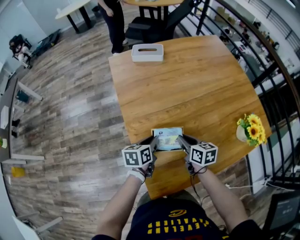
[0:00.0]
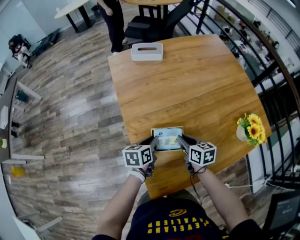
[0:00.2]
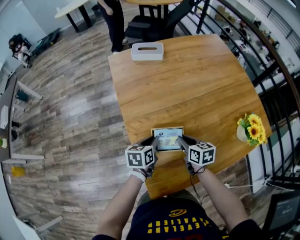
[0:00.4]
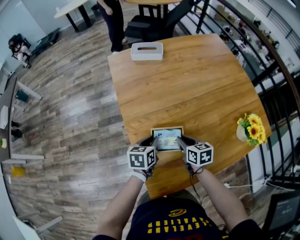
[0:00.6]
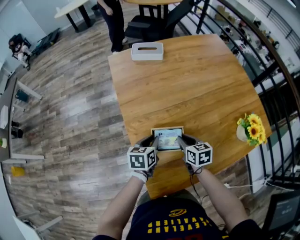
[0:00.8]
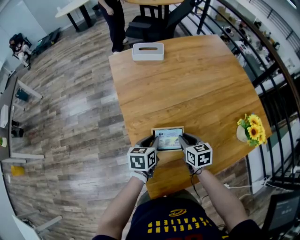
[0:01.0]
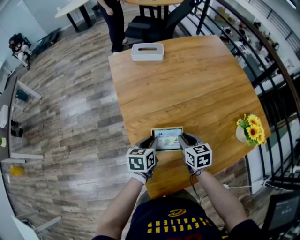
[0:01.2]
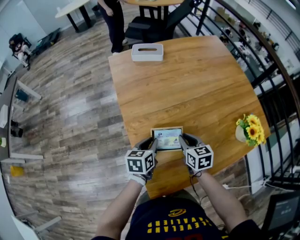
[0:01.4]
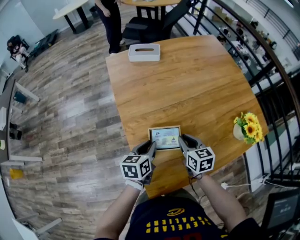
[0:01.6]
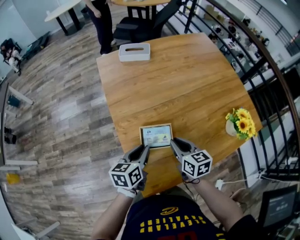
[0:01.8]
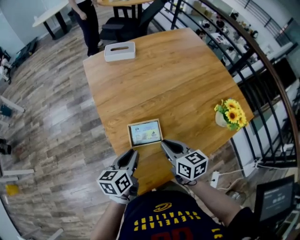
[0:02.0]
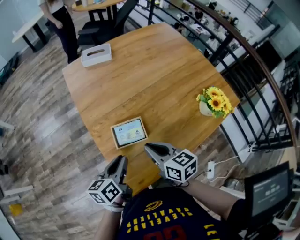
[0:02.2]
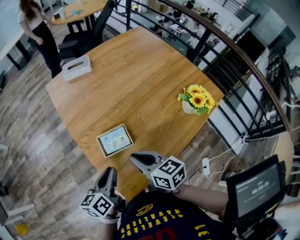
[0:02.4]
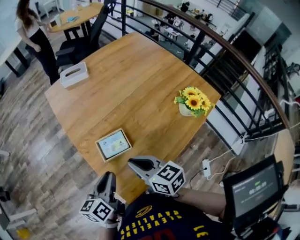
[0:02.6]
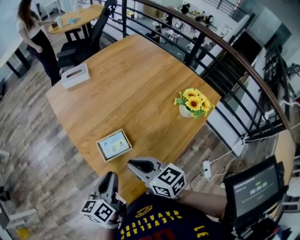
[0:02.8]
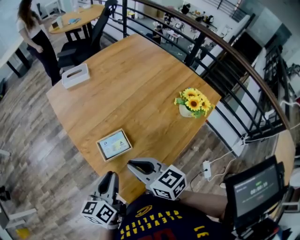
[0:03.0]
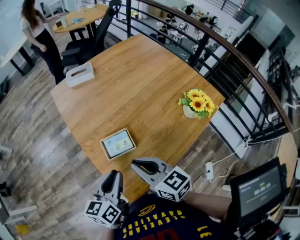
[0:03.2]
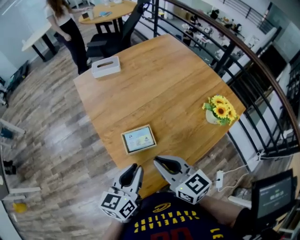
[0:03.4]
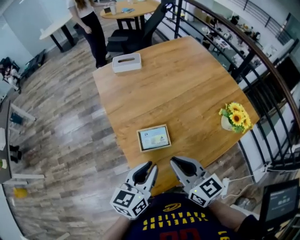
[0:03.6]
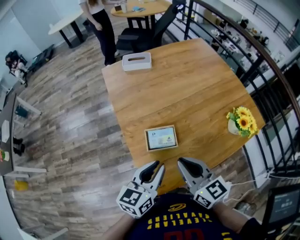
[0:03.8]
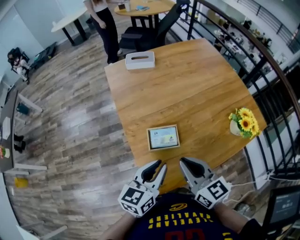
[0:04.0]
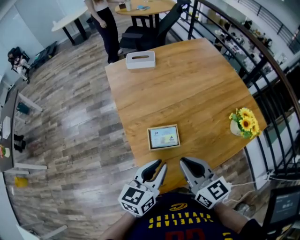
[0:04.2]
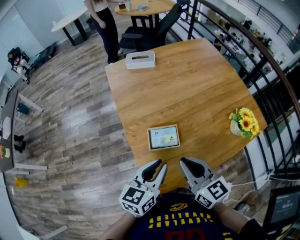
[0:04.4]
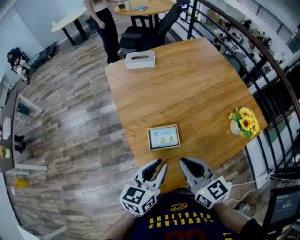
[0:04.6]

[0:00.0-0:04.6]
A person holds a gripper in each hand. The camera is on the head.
0:00.0 to 0:01.6: The grippers move only a little.
0:01.6 to 0:03.0: Both grippers move upward and backward, roughly 15 cm.
0:03.0 to 0:04.6: There are only small adjustments of the grippers.

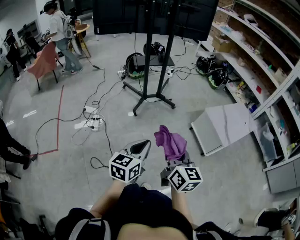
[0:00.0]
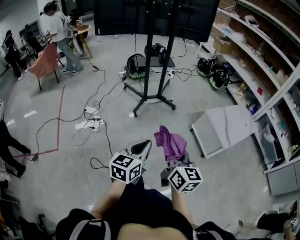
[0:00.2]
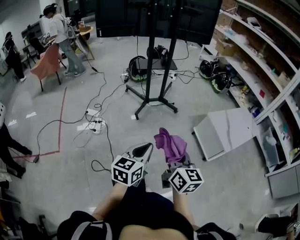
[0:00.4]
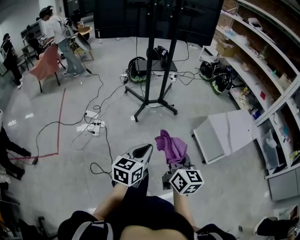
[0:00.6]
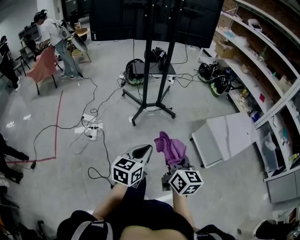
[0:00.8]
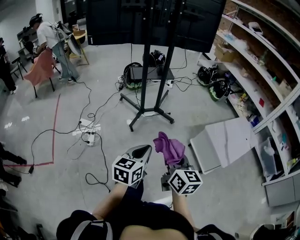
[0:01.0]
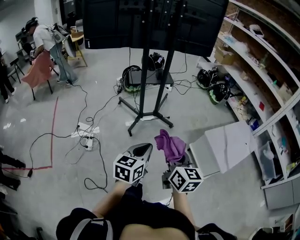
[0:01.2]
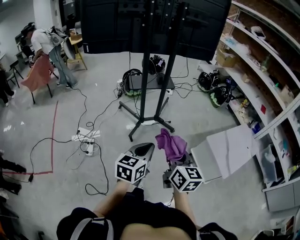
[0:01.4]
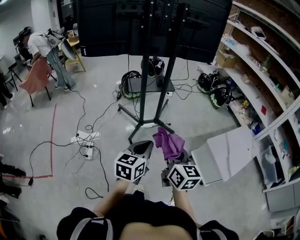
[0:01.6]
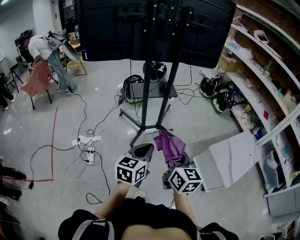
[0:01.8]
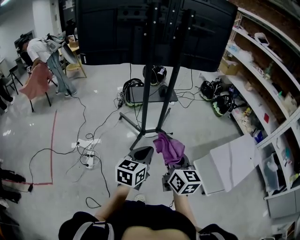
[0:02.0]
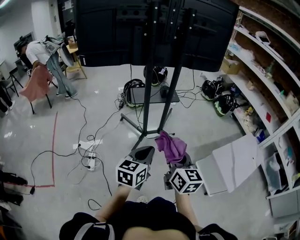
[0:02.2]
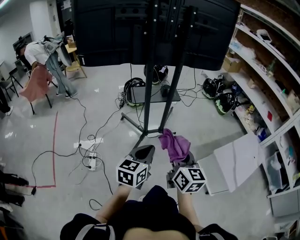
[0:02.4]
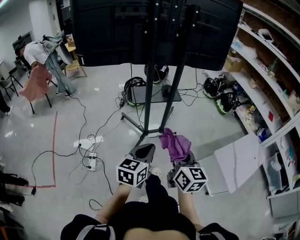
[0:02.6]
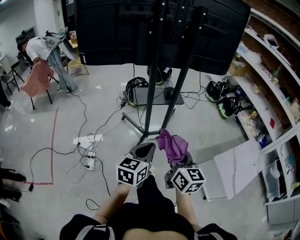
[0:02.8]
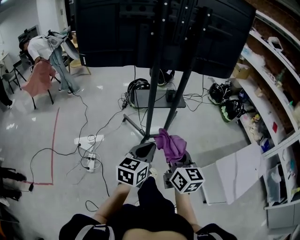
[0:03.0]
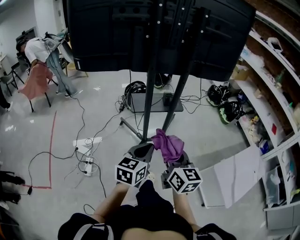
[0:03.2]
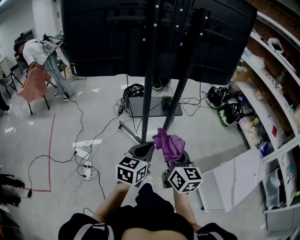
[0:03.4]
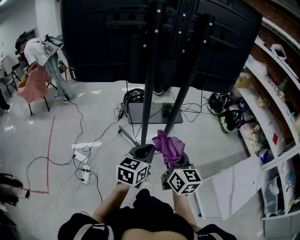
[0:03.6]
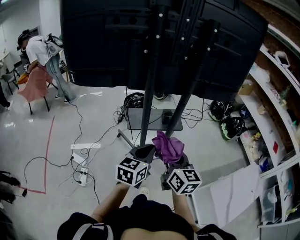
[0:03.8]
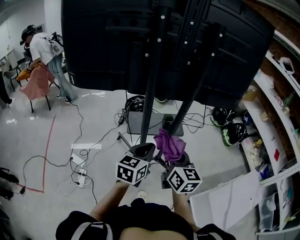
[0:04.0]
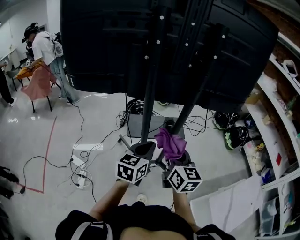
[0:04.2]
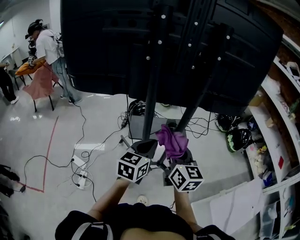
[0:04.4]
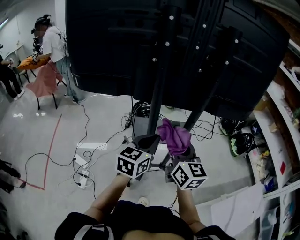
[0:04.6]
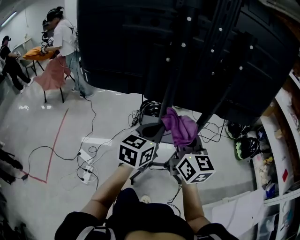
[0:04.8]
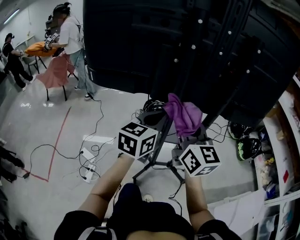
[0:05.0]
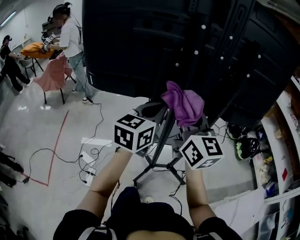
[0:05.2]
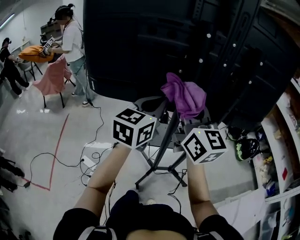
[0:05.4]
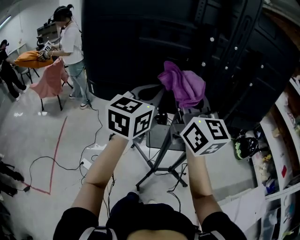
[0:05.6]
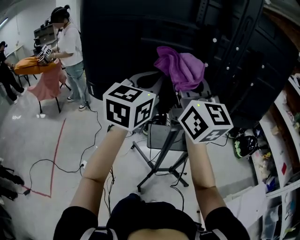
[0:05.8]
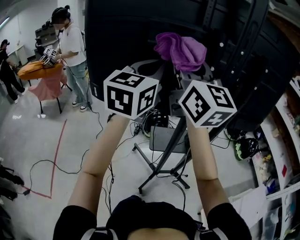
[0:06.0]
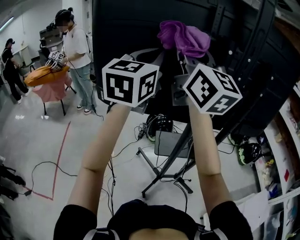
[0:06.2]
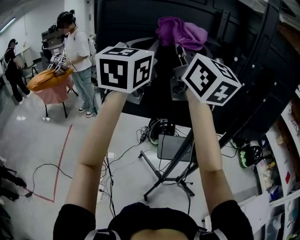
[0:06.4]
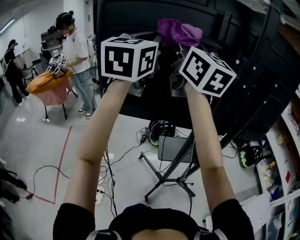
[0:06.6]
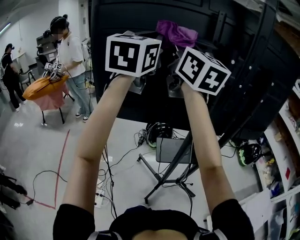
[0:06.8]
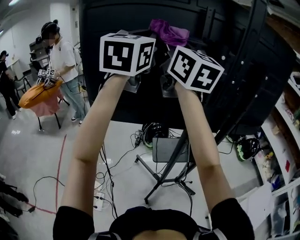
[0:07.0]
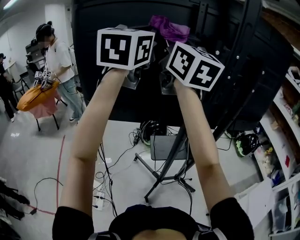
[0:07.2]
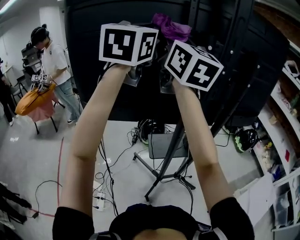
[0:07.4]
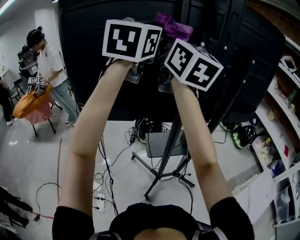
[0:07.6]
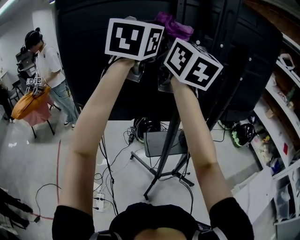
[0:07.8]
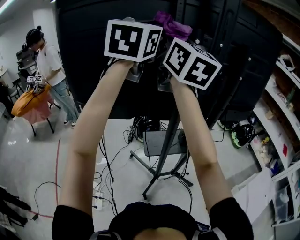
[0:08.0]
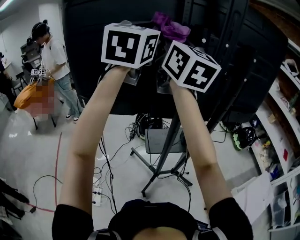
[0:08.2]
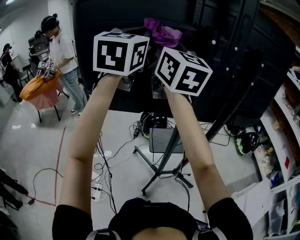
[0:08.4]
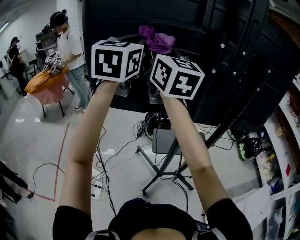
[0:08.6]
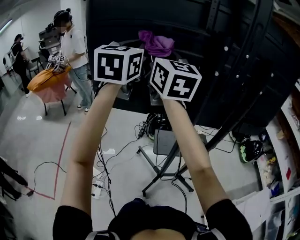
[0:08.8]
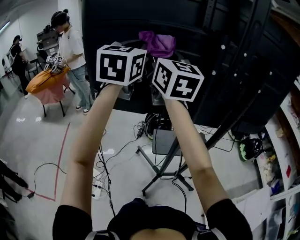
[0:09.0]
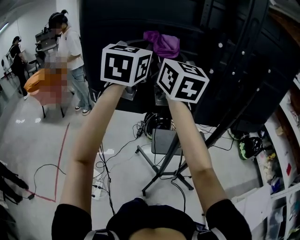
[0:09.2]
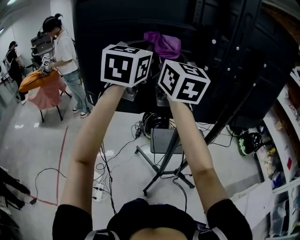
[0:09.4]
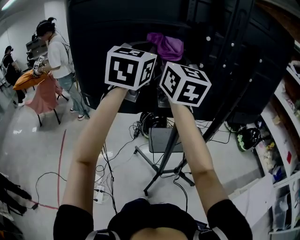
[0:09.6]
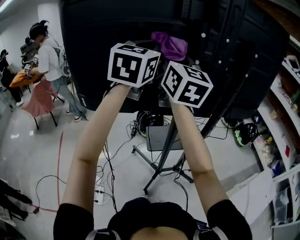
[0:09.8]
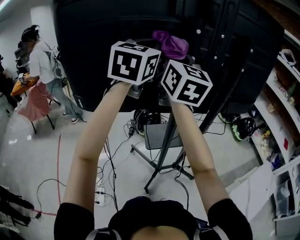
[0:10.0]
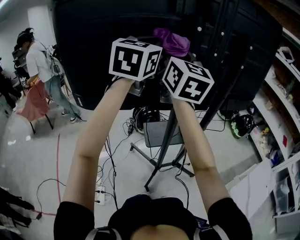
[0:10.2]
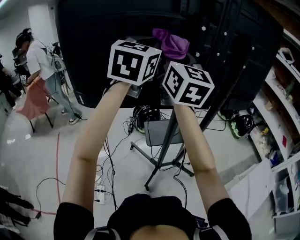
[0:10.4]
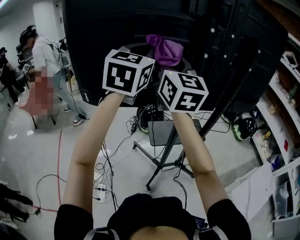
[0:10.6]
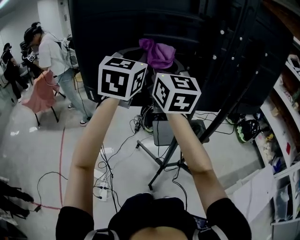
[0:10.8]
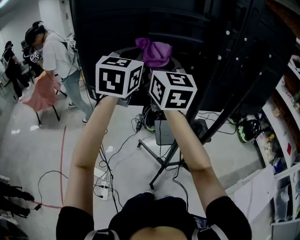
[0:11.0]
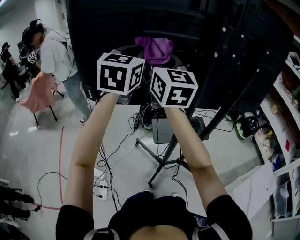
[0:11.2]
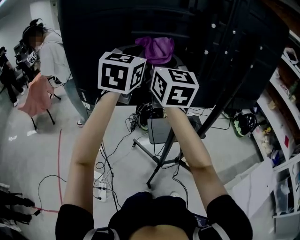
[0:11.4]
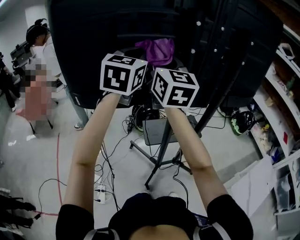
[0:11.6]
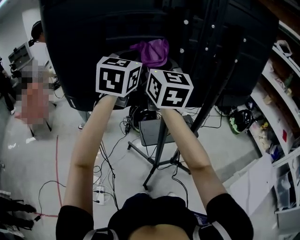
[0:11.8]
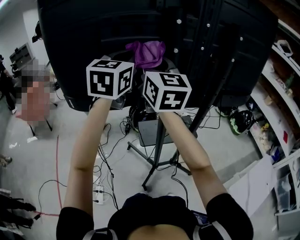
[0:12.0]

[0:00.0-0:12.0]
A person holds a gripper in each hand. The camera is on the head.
0:00.0 to 0:01.6: The two grippers go approximately 35 cm forward.
0:01.6 to 0:03.0: Both grippers move forward, about 20 cm.
0:03.0 to 0:04.4: Both grippers travel together forward, about 30 cm.
0:04.4 to 0:06.0: The right gripper moves upward and to the left, some 40 cm, and swivels approximately 30 degrees, while the left gripper heads upward, to the left and forward, covering some 40 cm, and turns by some 30 degrees.
0:06.0 to 0:07.6: The right gripper is displaced forward and to the right by roughly 10 cm, while the left gripper shifts some 15 cm upward and forward, and goes to the left and returns, roughly 10 cm each way.
0:07.6 to 0:09.0: Both grippers travel together to the left and downward, some 15 cm.
0:09.0 to 0:10.4: The grippers both shift to the right by roughly 10 cm.
0:10.4 to 0:12.0: The left gripper reaches about 10 cm to the left, then returns. Meanwhile the right gripper moves roughly 10 cm to the left and comes back.

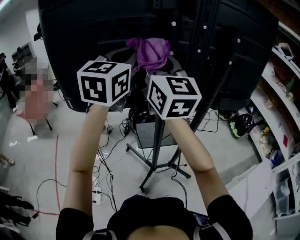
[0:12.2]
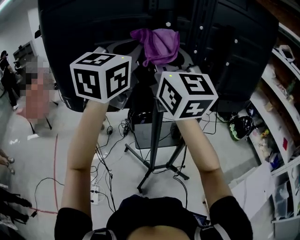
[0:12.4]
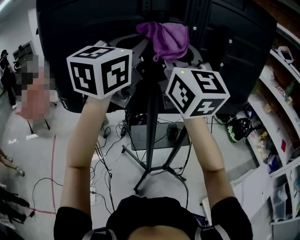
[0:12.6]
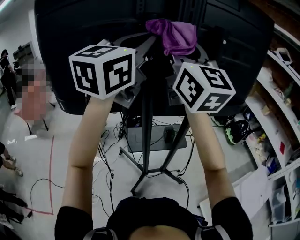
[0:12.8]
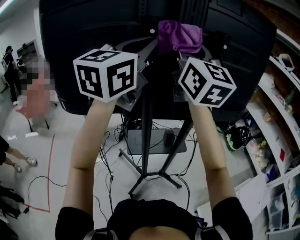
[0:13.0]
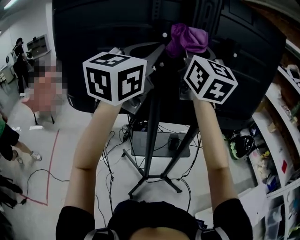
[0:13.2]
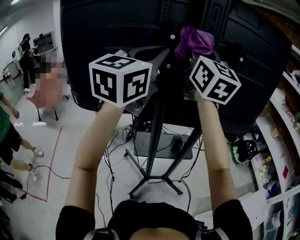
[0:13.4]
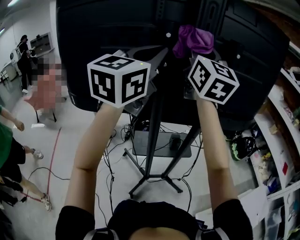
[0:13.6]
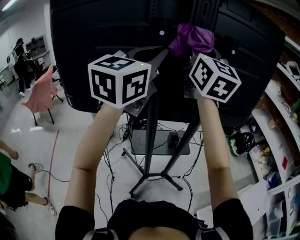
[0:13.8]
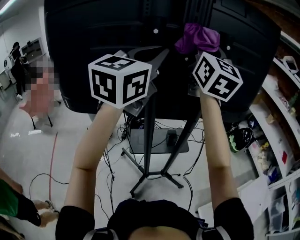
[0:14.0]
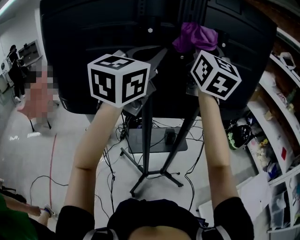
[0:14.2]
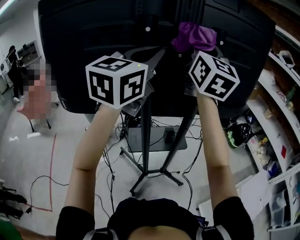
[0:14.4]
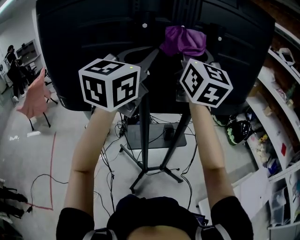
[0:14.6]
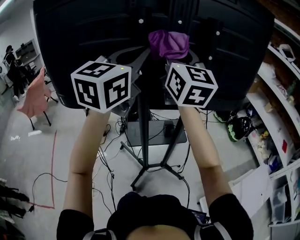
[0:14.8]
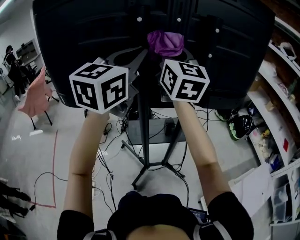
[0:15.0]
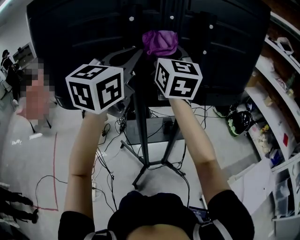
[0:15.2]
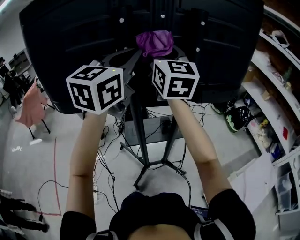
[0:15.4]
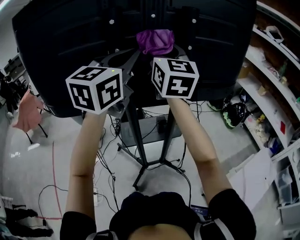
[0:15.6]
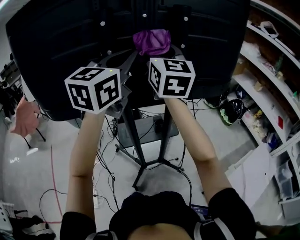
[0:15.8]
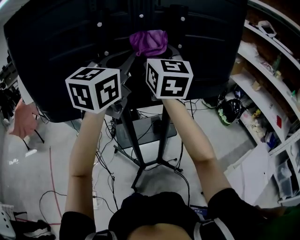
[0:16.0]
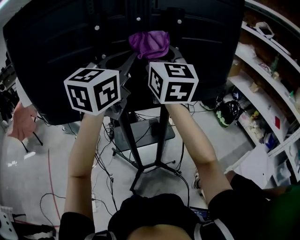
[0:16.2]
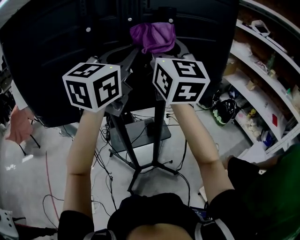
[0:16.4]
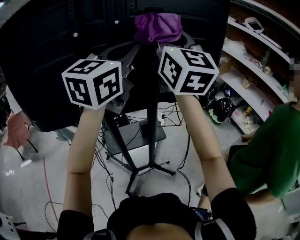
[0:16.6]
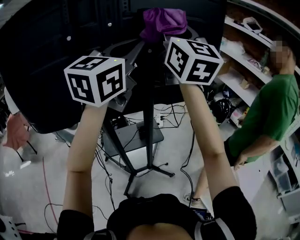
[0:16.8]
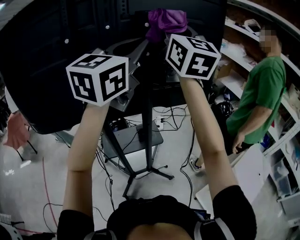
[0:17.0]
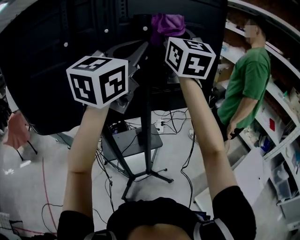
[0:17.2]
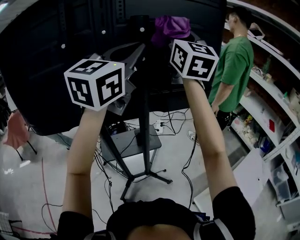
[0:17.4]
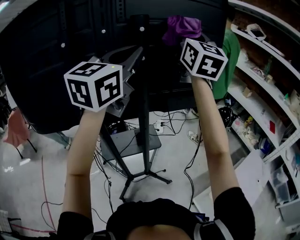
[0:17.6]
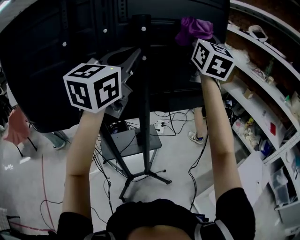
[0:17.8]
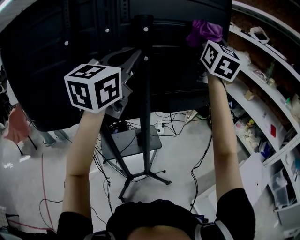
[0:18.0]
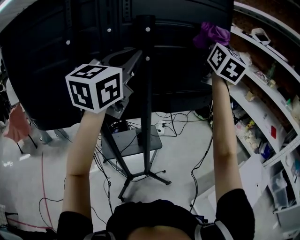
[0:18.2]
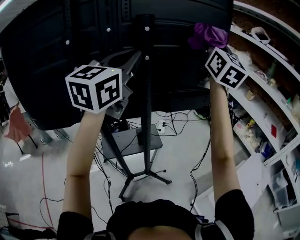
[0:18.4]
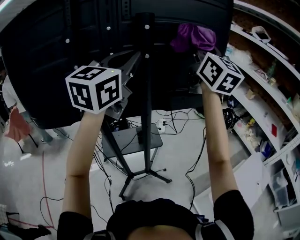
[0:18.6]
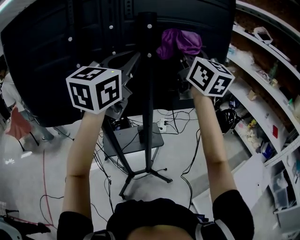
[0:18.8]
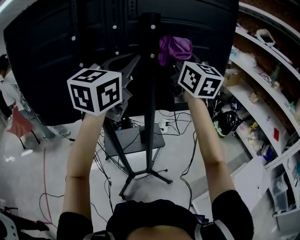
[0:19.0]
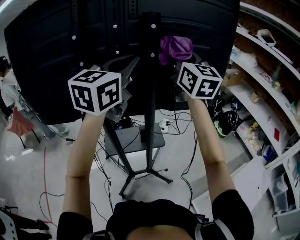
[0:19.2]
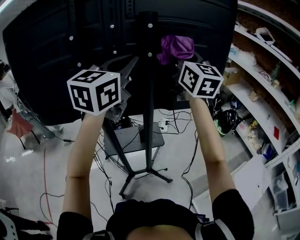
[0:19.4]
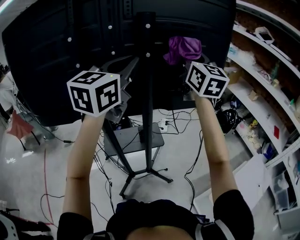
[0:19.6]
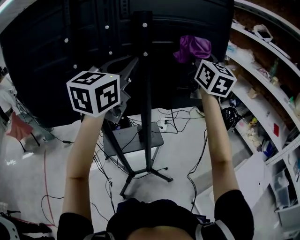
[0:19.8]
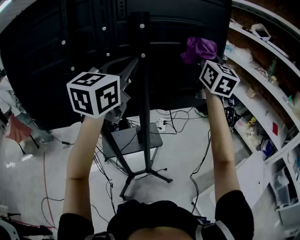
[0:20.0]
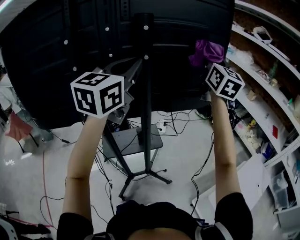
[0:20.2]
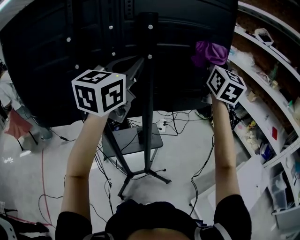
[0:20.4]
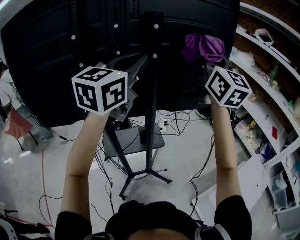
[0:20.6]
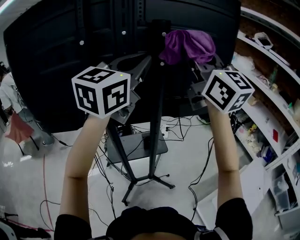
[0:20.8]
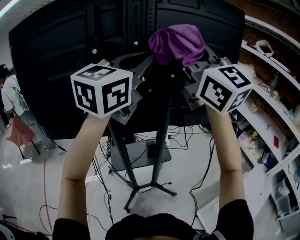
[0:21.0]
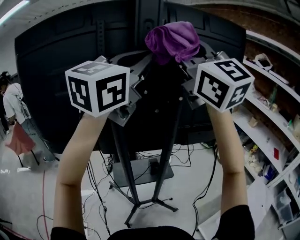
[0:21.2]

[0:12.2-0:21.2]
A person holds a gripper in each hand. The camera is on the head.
0:12.2 to 0:13.8: The right gripper heads to the right and upward, covering some 15 cm. Meanwhile the left gripper moves to the right, about 10 cm.
0:13.8 to 0:15.2: The right gripper goes about 10 cm downward.
0:15.2 to 0:16.6: The left gripper goes some 15 cm to the right. The right gripper is displaced to the right and upward by approximately 15 cm.
0:16.6 to 0:18.2: The right gripper travels to the right and forward by some 25 cm.
0:18.2 to 0:19.8: The right gripper travels downward and to the left by approximately 10 cm.
0:19.8 to 0:21.2: The left gripper moves upward and to the left, some 15 cm; the right gripper heads to the left, upward and backward, covering about 30 cm, and swivels roughly 30 degrees.
